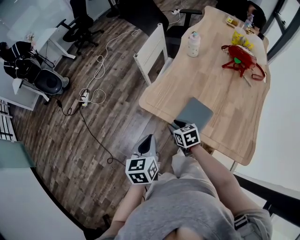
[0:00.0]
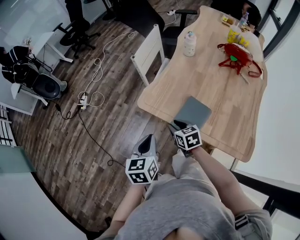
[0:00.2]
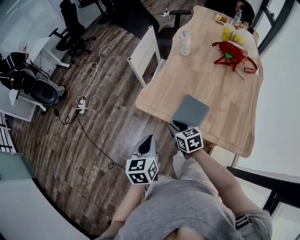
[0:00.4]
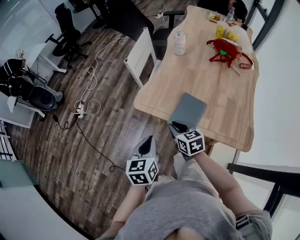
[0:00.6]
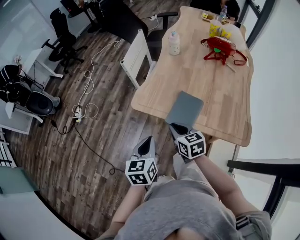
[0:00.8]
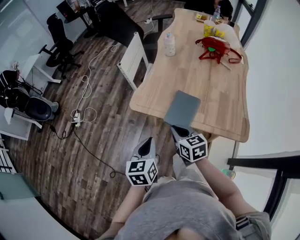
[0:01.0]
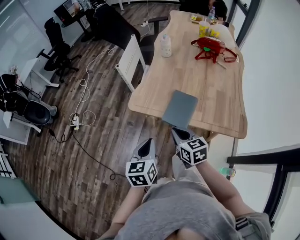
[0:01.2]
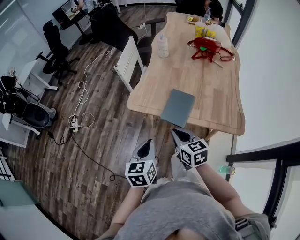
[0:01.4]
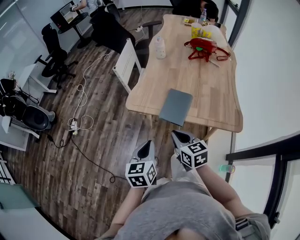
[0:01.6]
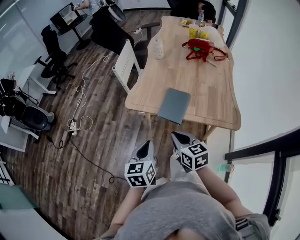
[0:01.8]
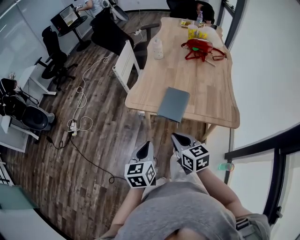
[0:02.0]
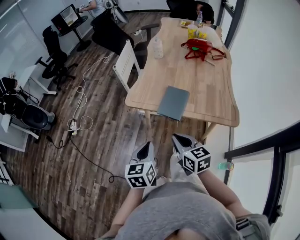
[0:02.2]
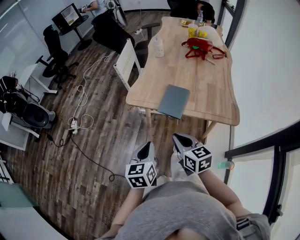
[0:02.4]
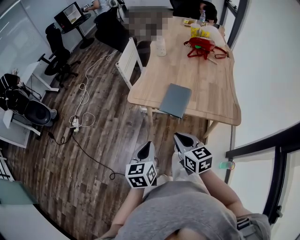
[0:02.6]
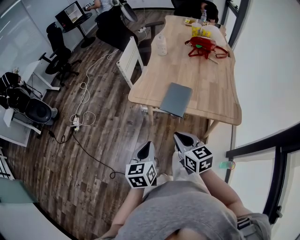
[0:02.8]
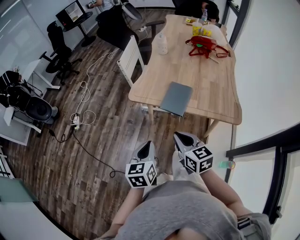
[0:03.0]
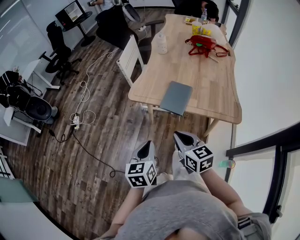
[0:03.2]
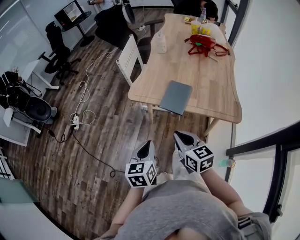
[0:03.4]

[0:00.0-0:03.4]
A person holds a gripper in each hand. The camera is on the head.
0:00.0 to 0:01.6: The right gripper travels backward and upward by some 20 cm, turns by approximately 30 degrees, and closes its fingers. Meanwhile the left gripper shifts about 10 cm backward.
0:01.6 to 0:03.4: The two grippers go roughly 5 cm backward.

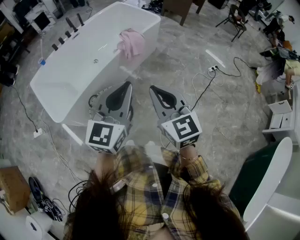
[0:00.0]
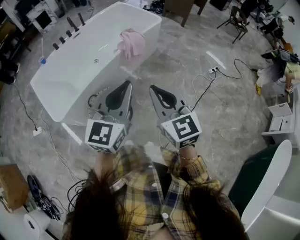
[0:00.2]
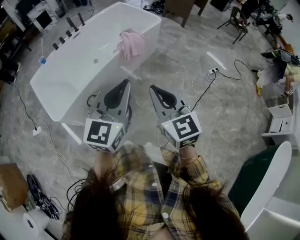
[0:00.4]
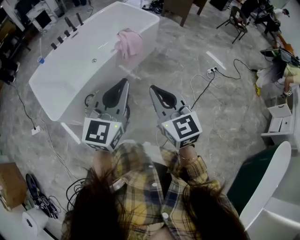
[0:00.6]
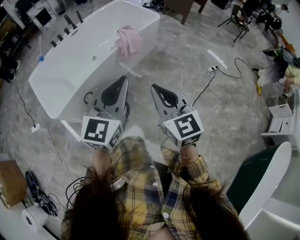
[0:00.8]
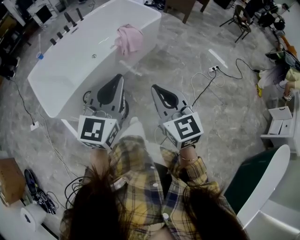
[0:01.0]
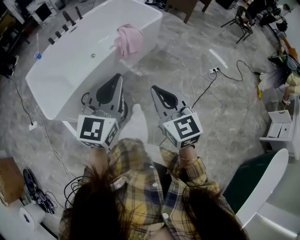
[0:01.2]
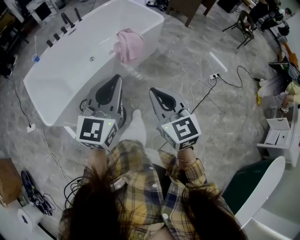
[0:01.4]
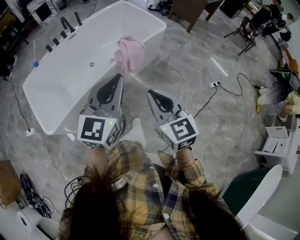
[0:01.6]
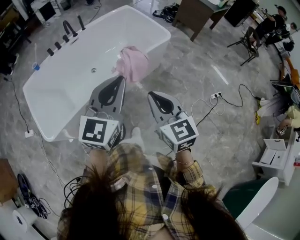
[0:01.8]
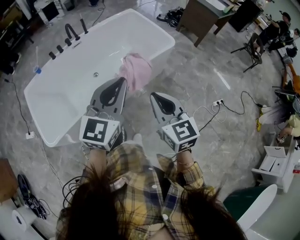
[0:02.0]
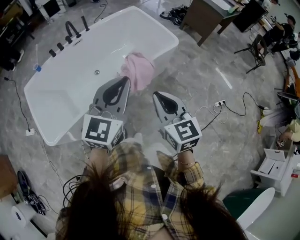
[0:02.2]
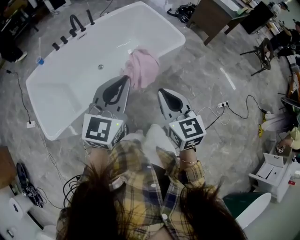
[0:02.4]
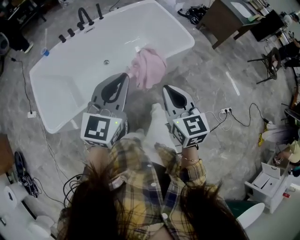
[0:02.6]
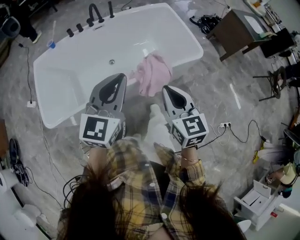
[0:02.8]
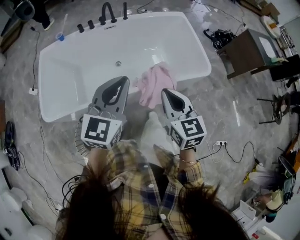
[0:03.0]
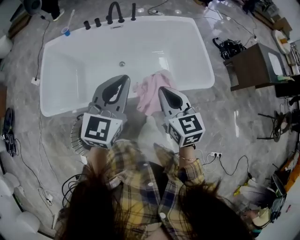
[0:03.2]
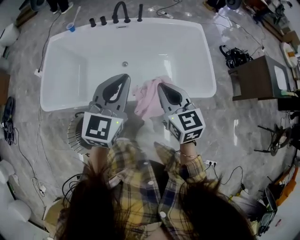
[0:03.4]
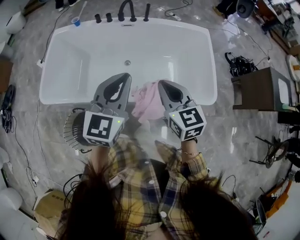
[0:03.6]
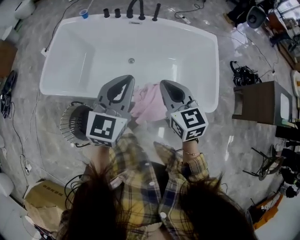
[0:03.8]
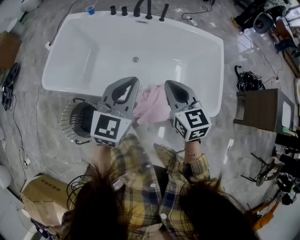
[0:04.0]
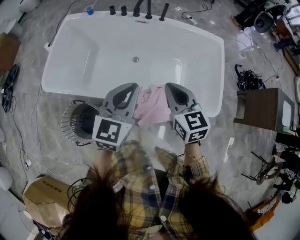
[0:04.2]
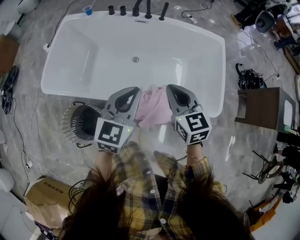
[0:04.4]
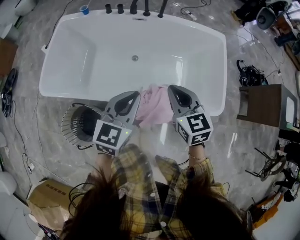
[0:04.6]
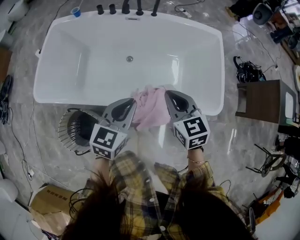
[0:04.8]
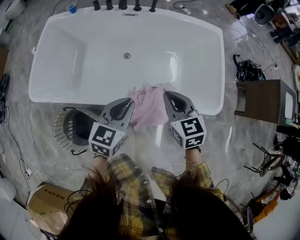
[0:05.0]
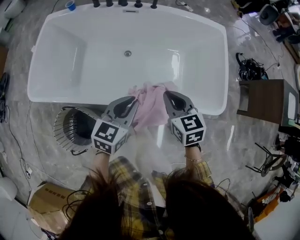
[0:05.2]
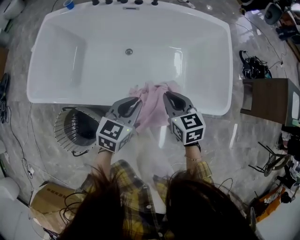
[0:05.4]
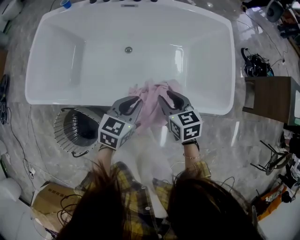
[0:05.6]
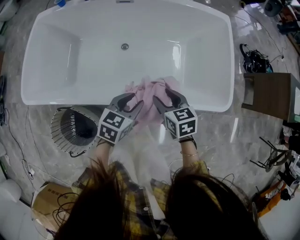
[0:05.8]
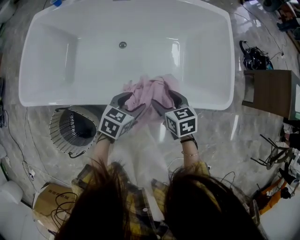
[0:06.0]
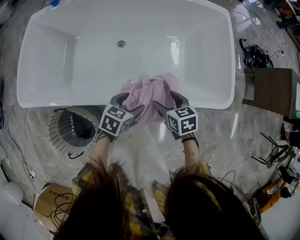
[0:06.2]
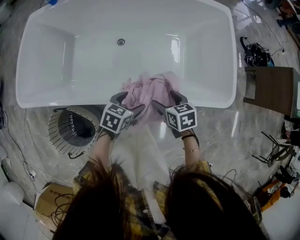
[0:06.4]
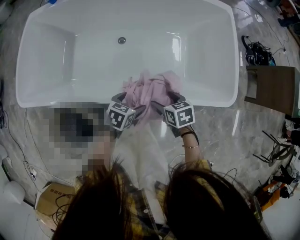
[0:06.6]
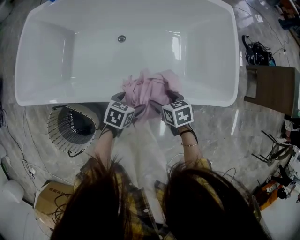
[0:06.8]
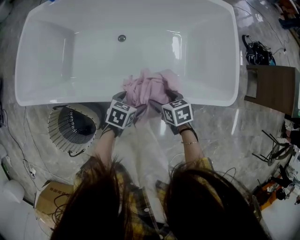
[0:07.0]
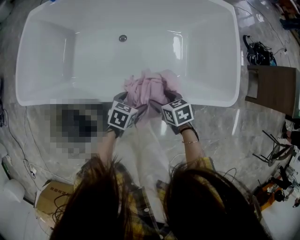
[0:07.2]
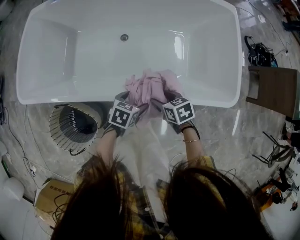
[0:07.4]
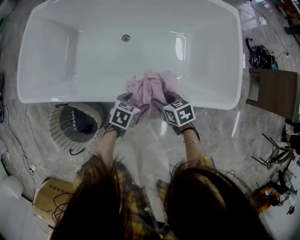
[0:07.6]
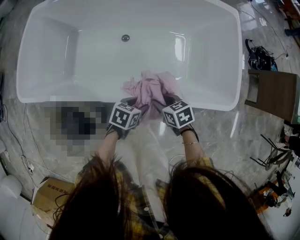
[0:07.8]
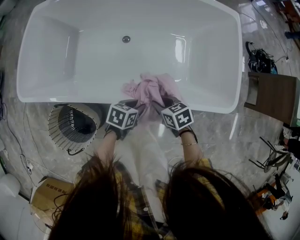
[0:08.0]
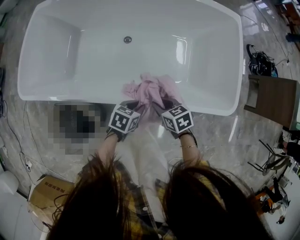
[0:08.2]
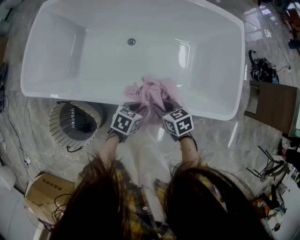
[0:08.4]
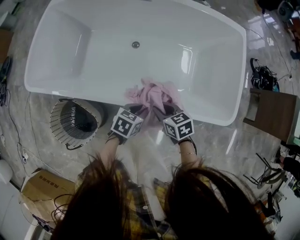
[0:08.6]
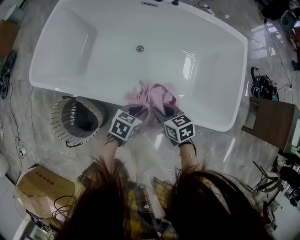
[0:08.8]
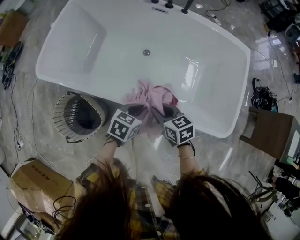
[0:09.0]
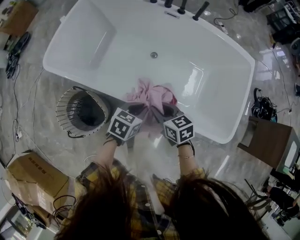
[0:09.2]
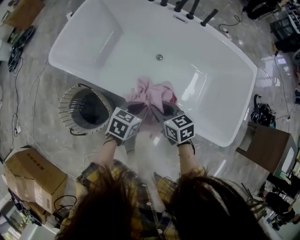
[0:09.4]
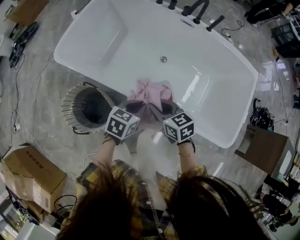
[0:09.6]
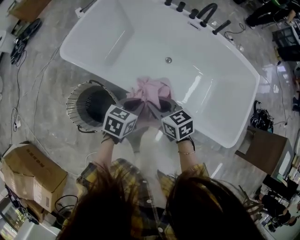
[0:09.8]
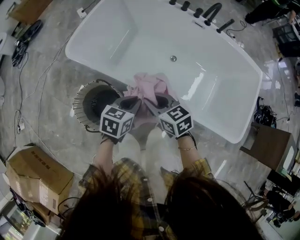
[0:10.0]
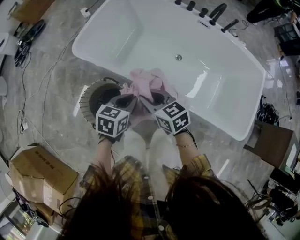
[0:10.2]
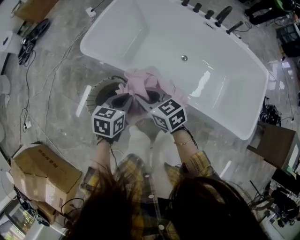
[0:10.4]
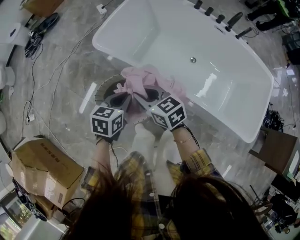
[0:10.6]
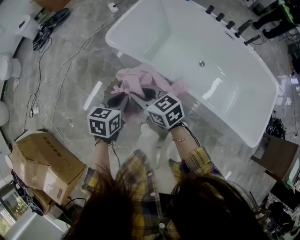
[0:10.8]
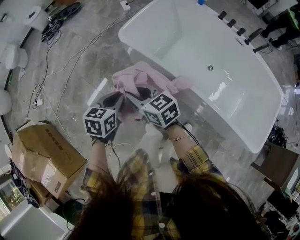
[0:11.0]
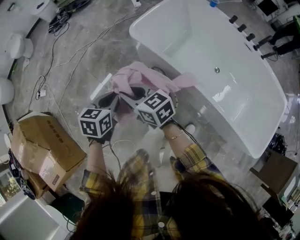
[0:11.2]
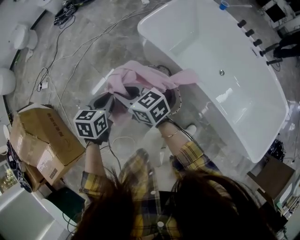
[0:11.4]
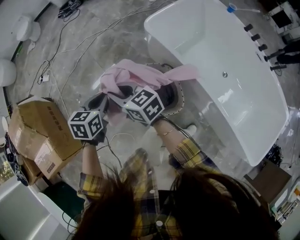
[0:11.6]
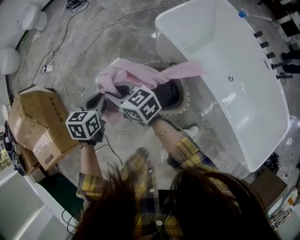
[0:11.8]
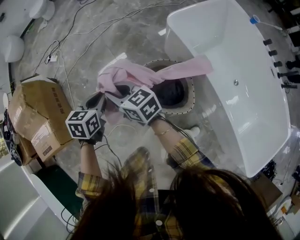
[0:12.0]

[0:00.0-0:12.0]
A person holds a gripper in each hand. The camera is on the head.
0:00.0 to 0:01.6: The two grippers go roughly 20 cm forward.
0:01.6 to 0:03.0: The grippers both shift forward by about 30 cm. The left gripper turns by about 30 degrees. Meanwhile the right gripper turns by approximately 20 degrees.
0:03.0 to 0:04.4: The right gripper heads forward, covering roughly 20 cm, and rotates roughly 30 degrees. Meanwhile the left gripper shifts some 15 cm forward, downward and to the right, and swivels approximately 20 degrees.
0:04.4 to 0:06.0: The two grippers go roughly 30 cm downward. The right gripper rotates about 30 degrees, and opens, while the left gripper rotates about 40 degrees, and opens its fingers.
0:06.0 to 0:07.6: Both grippers move downward, about 10 cm. The right gripper closes its fingers.
0:07.6 to 0:09.0: Both grippers move upward, roughly 10 cm. The left gripper closes its fingers.
0:09.0 to 0:10.4: Both grippers move to the left, some 35 cm. The left gripper swivels about 30 degrees. The right gripper rotates approximately 20 degrees.
0:10.4 to 0:12.0: The pair of grippers is taken about 40 cm. The right gripper turns by about 40 degrees, while the left gripper swivels about 40 degrees.

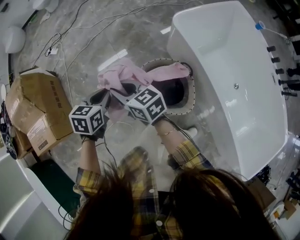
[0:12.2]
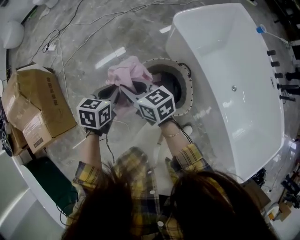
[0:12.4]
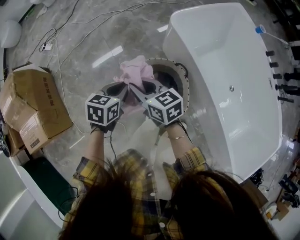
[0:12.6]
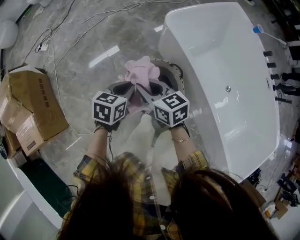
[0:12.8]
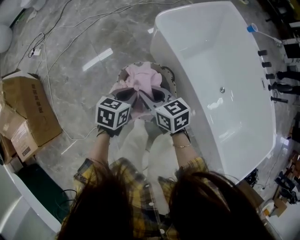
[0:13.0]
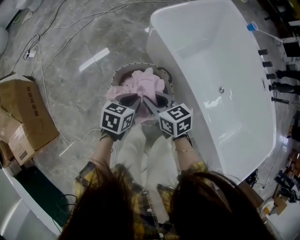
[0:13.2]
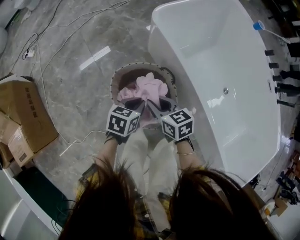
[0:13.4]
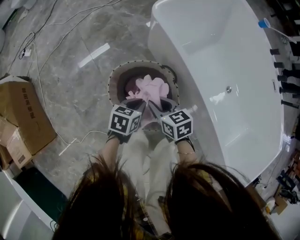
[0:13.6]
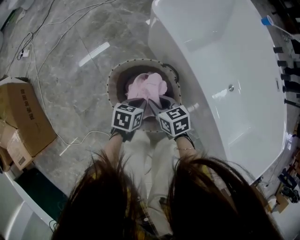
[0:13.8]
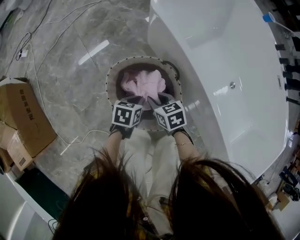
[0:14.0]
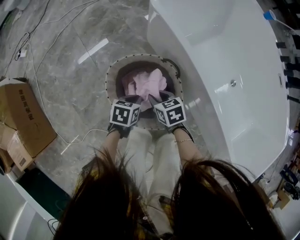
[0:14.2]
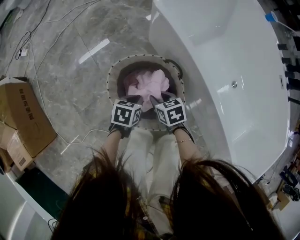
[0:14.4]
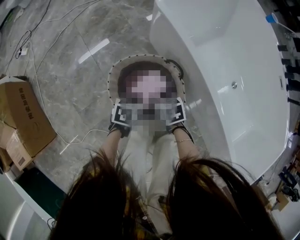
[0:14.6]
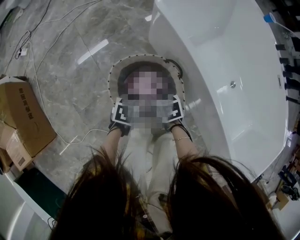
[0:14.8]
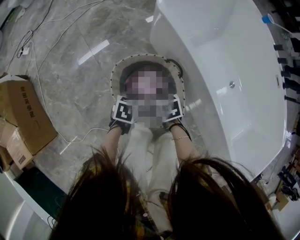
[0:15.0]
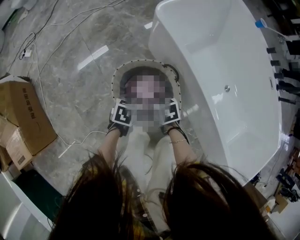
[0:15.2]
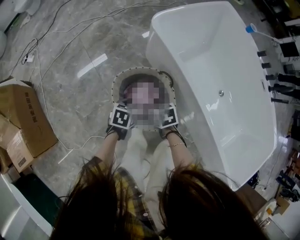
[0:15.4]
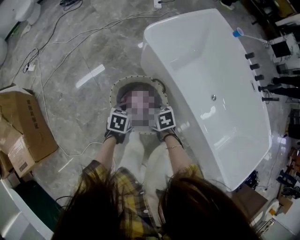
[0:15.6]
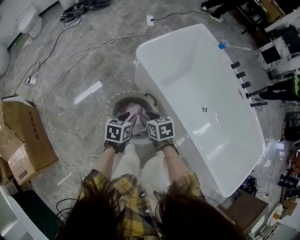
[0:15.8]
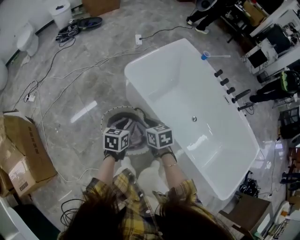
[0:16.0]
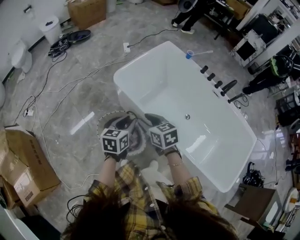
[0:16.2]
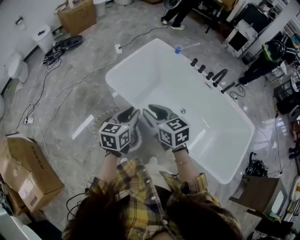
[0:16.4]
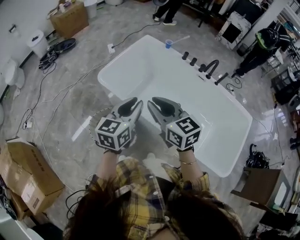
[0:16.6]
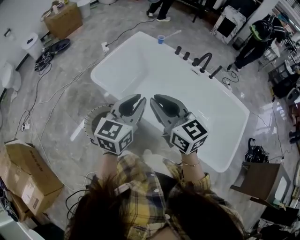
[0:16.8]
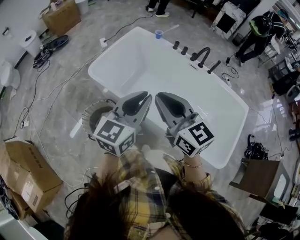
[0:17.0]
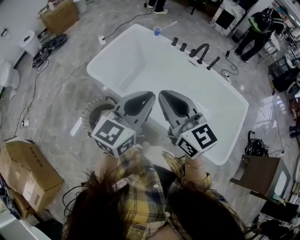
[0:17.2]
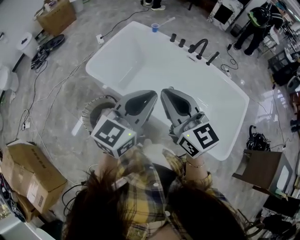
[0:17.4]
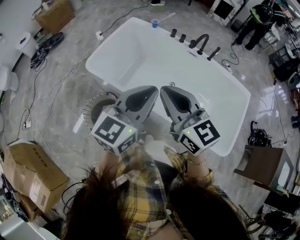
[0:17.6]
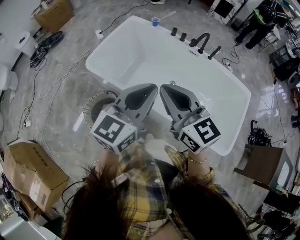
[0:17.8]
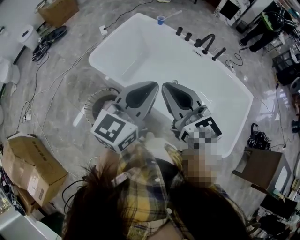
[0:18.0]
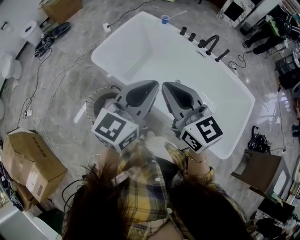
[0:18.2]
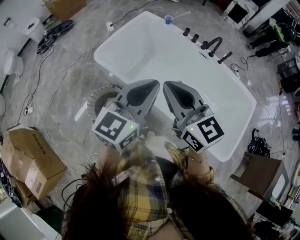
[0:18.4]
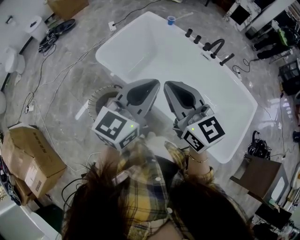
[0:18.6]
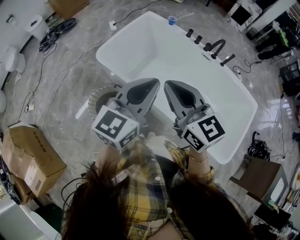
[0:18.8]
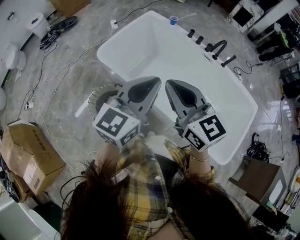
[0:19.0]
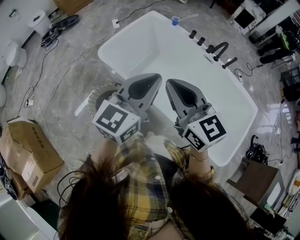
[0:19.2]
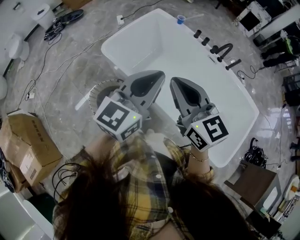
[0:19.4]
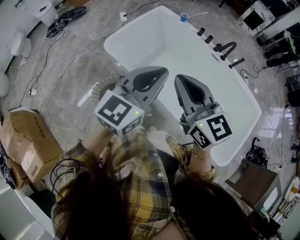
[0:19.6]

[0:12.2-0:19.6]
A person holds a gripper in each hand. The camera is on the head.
0:12.2 to 0:13.6: Both grippers move to the right and downward, about 35 cm. The left gripper rotates some 20 degrees. Meanwhile the right gripper turns by roughly 30 degrees.
0:13.6 to 0:15.2: The left gripper goes downward and returns, approximately 10 cm each way. The right gripper travels downward by some 5 cm.
0:15.2 to 0:16.6: Both grippers move upward and to the right, some 60 cm. The left gripper tips its fingers upward by about 50 degrees; the right gripper tips its fingers upward by about 50 degrees.
0:16.6 to 0:18.2: Both grippers travel together to the right and upward, roughly 10 cm.
0:18.2 to 0:19.6: The grippers stay close to where they were, moving slightly.
